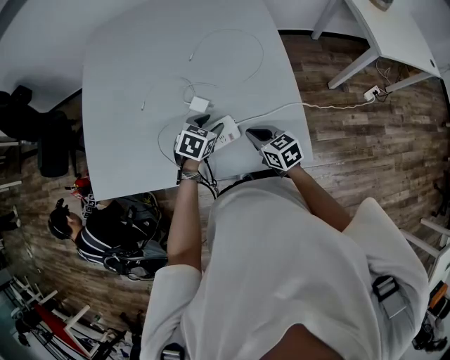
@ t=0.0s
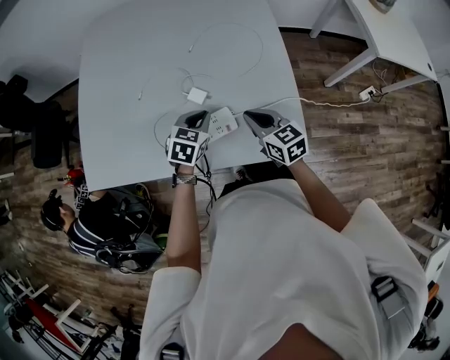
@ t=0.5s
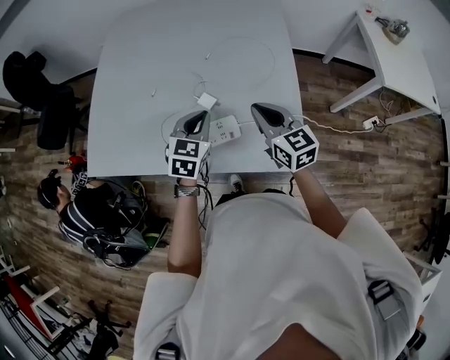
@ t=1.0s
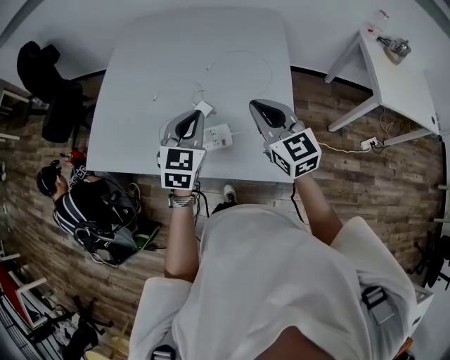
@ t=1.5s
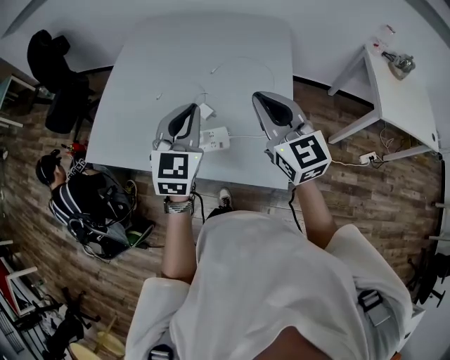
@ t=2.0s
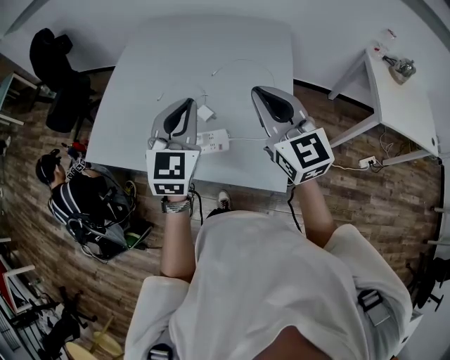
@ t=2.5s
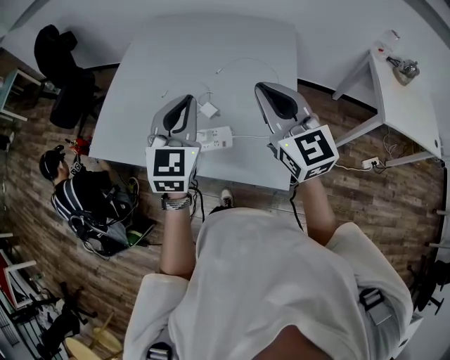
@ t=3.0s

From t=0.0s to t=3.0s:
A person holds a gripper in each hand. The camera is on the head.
From t=0.0s to t=1.5s: Both grippers move upward, approximately 25 cm. The right gripper changes its angle by about 30 degrees. Meanwhile the left gripper tilts its fingers some 30 degrees upward, and closes up.
From t=1.5s to t=3.0s: Both grippers move upward, roughly 10 cm.

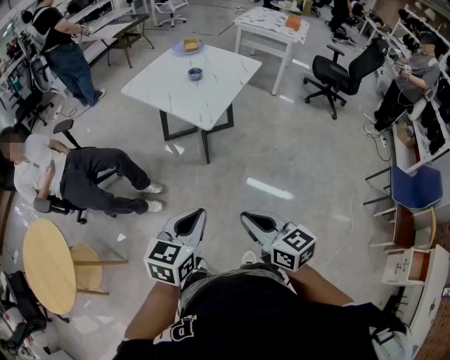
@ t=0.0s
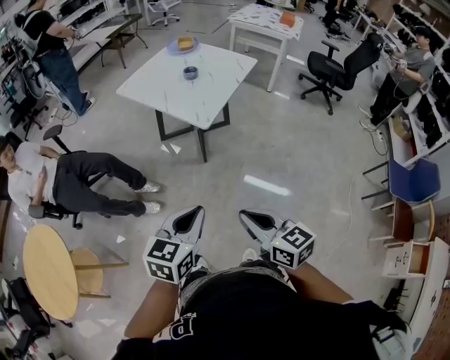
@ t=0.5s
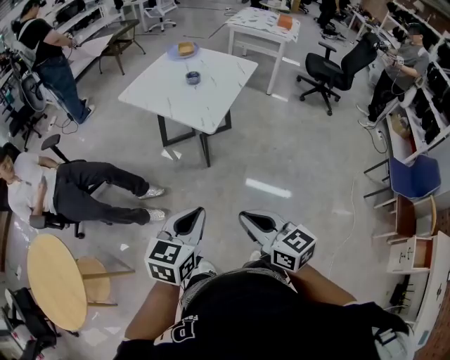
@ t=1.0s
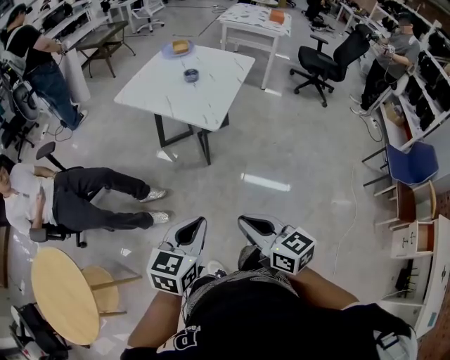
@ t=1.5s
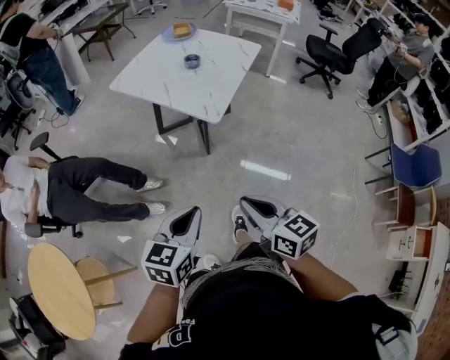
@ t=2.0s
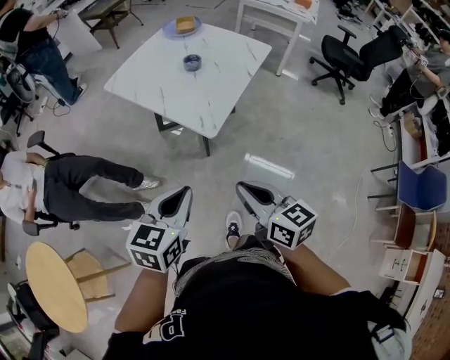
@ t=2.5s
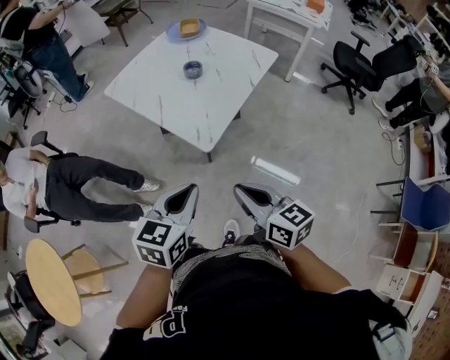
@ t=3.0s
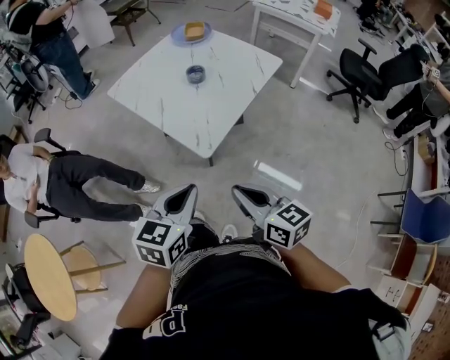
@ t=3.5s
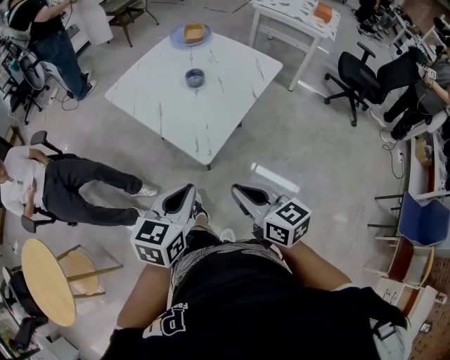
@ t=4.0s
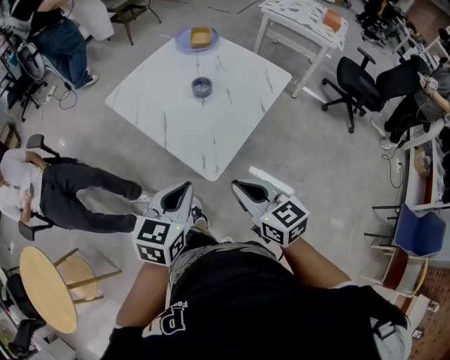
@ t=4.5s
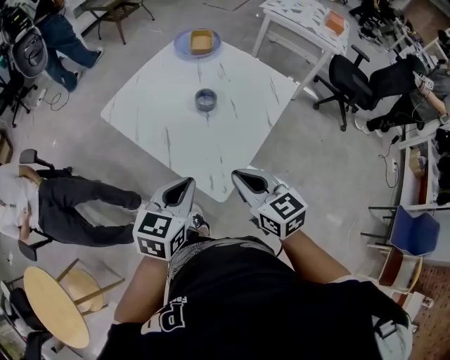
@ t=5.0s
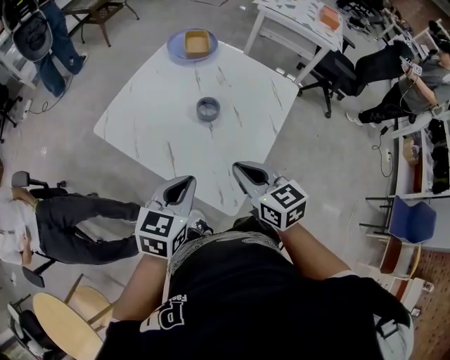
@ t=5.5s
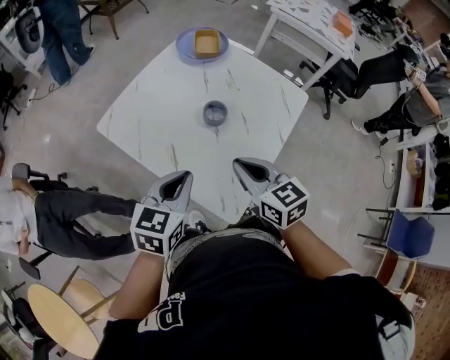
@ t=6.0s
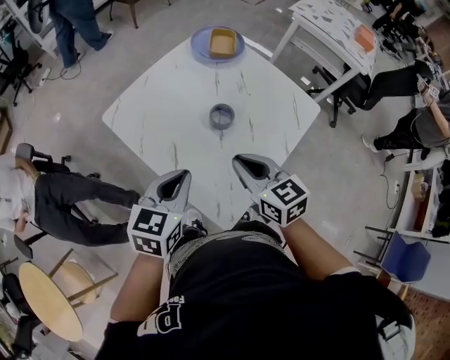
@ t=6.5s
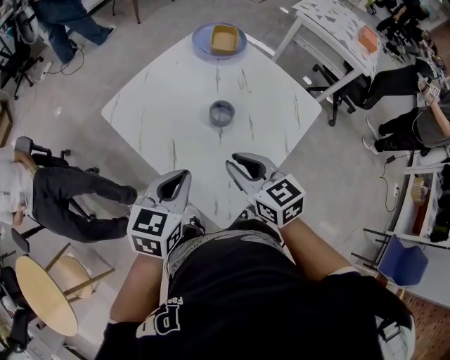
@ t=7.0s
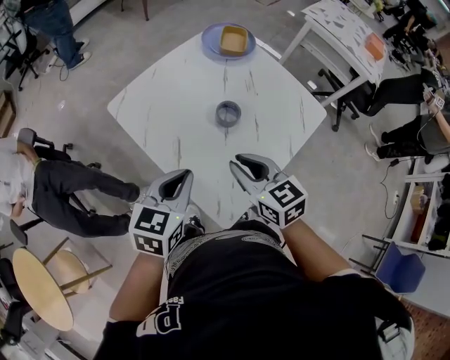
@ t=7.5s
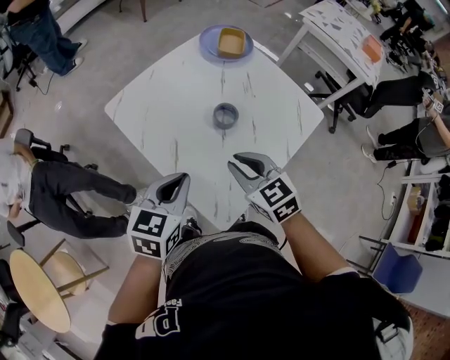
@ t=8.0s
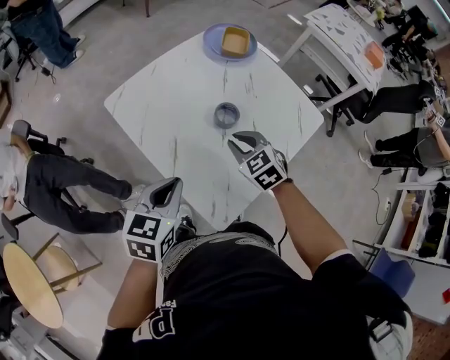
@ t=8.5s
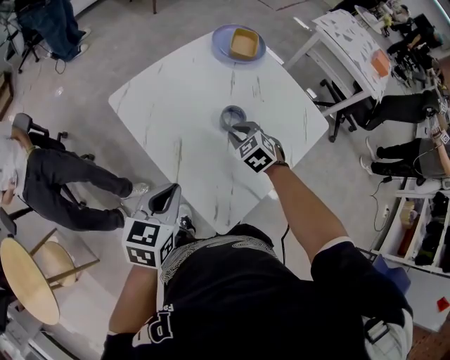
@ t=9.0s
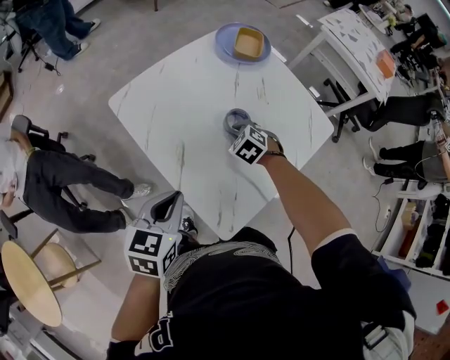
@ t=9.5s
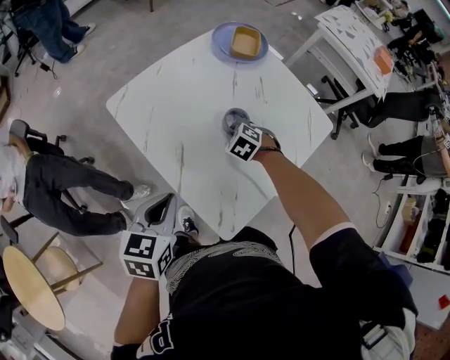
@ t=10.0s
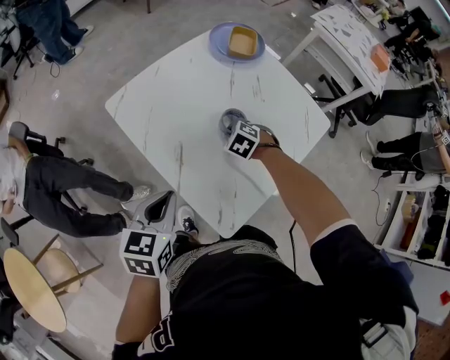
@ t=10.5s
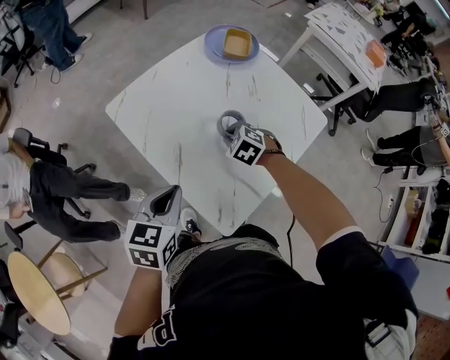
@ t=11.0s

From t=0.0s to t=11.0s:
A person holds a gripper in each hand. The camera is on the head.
From t=0.0s to t=2.0s: The left gripper moves to the left and forward, about 10 cm; the right gripper travels forward and to the left by approximately 10 cm.
From t=2.0s to t=3.5s: The grippers both shift forward and to the right by roughly 25 cm.
From t=3.5s to t=5.5s: Both grippers move forward, approximately 30 cm.
From t=5.5s to t=7.5s: The right gripper heads forward, covering roughly 5 cm.
From t=7.5s to t=9.0s: The right gripper moves downward and forward, some 20 cm, and changes its angle by about 40 degrees; the left gripper shifts by approximately 5 cm.
From t=9.0s to t=11.0s: The right gripper goes downward and returns, about 10 cm each way.

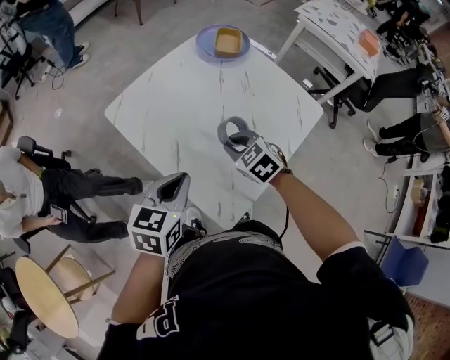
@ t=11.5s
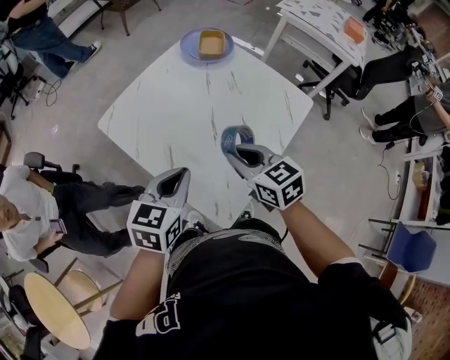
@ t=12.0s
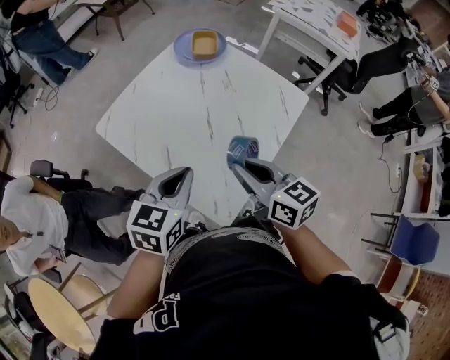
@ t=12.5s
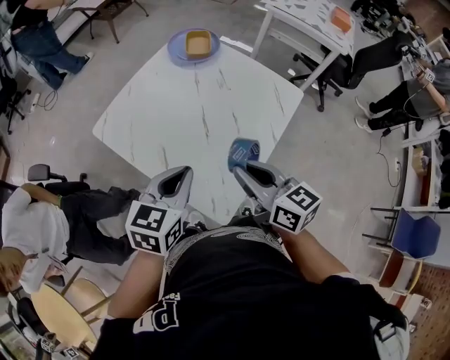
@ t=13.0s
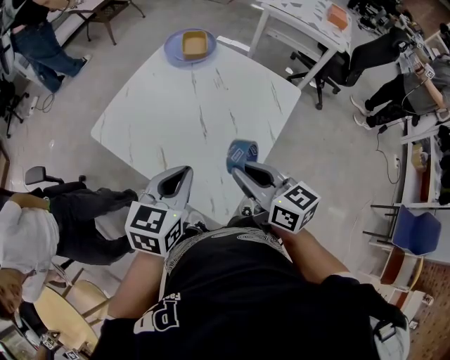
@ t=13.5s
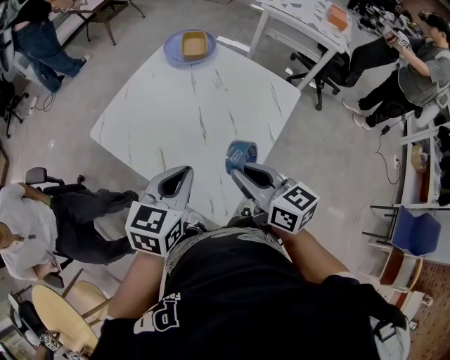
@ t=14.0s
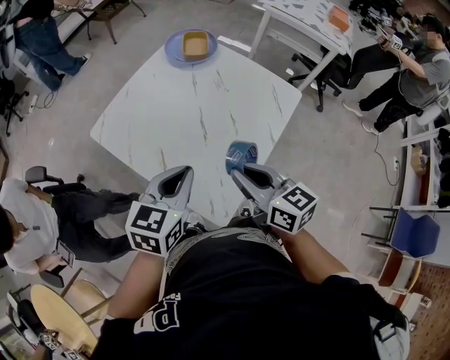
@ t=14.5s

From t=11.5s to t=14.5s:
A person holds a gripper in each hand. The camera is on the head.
From t=11.5s to t=13.0s: The right gripper shifts about 20 cm upward and backward, and tips its fingers upward by about 40 degrees. The left gripper is displaced to the right by roughly 5 cm.
From t=13.0s to t=14.5s: The two grippers keep their place.

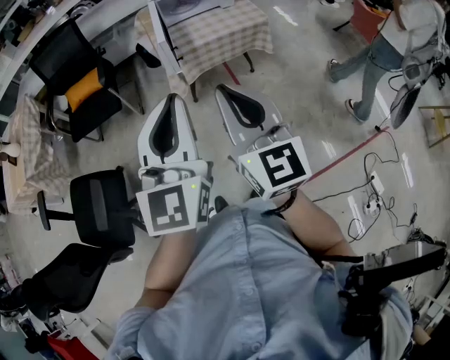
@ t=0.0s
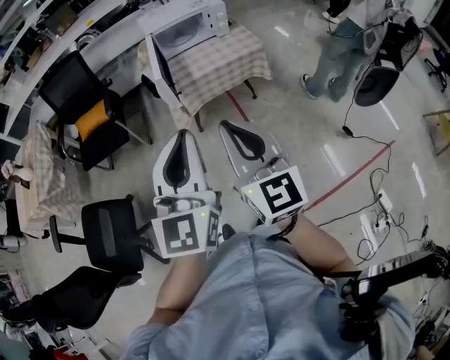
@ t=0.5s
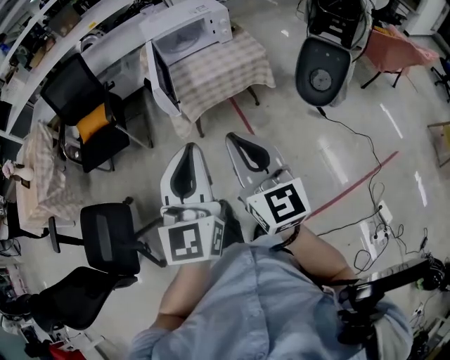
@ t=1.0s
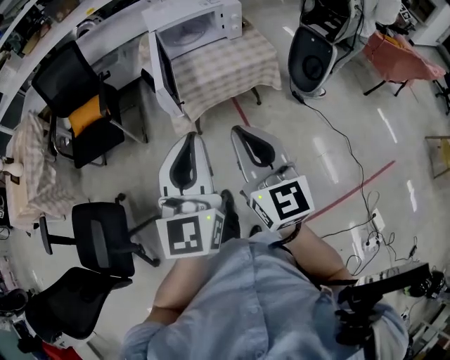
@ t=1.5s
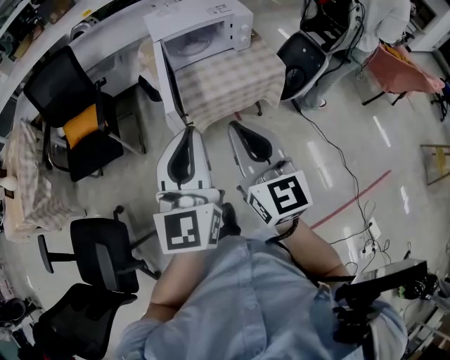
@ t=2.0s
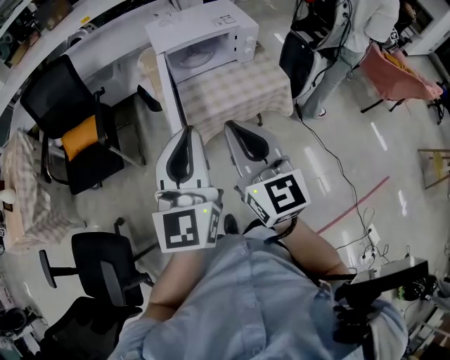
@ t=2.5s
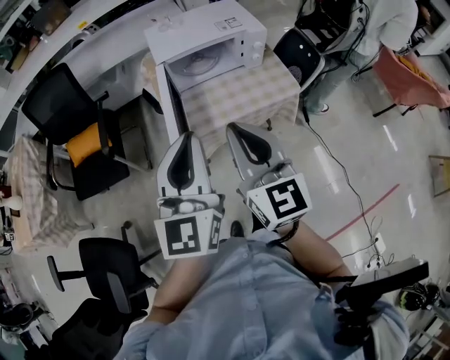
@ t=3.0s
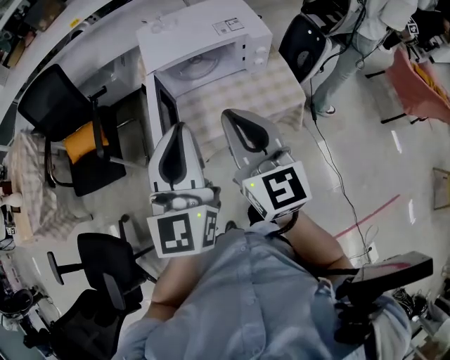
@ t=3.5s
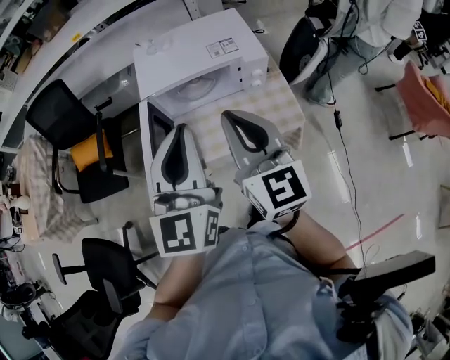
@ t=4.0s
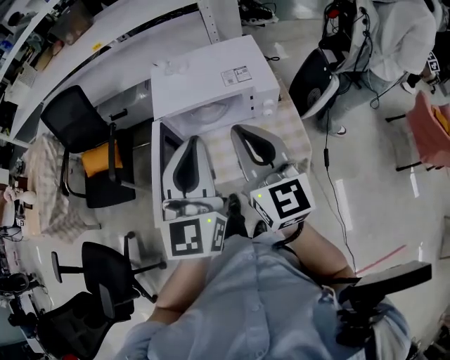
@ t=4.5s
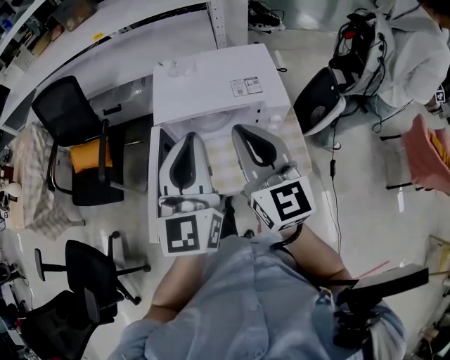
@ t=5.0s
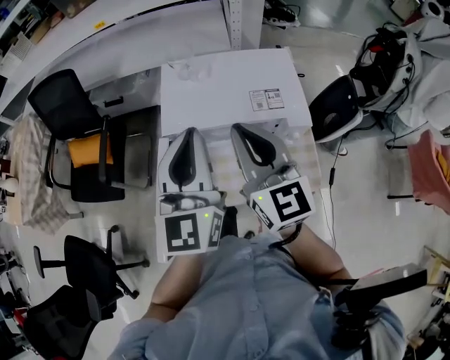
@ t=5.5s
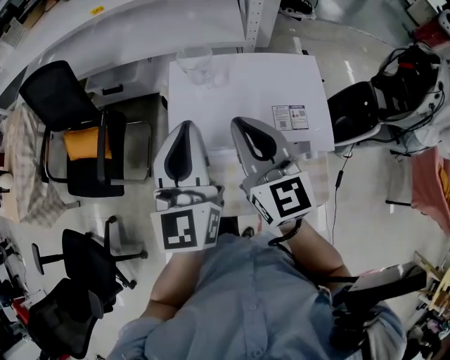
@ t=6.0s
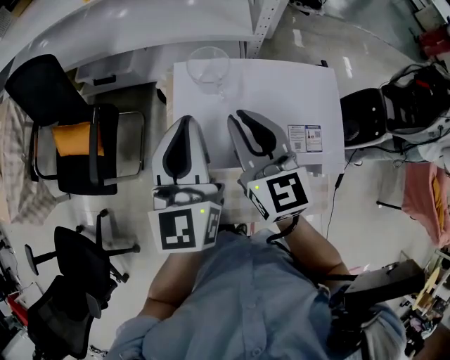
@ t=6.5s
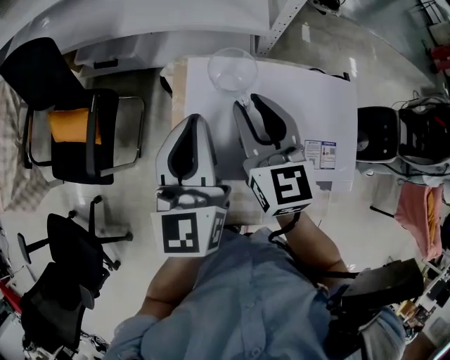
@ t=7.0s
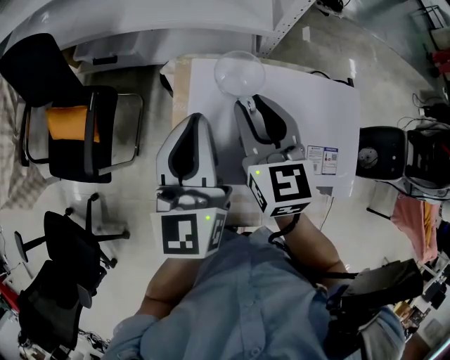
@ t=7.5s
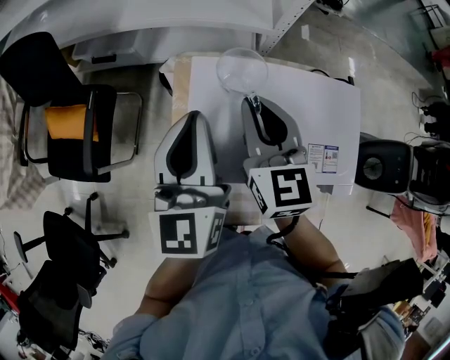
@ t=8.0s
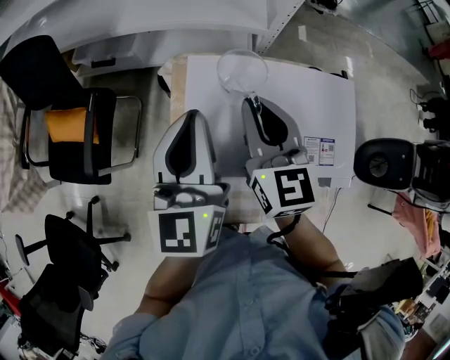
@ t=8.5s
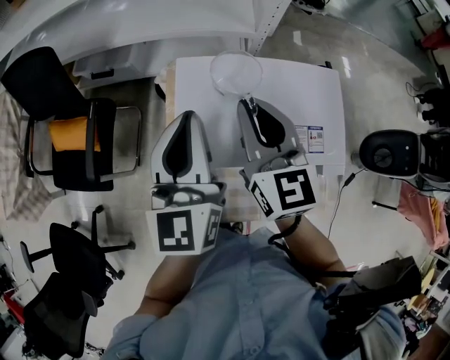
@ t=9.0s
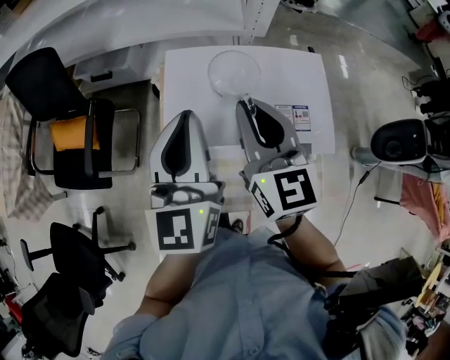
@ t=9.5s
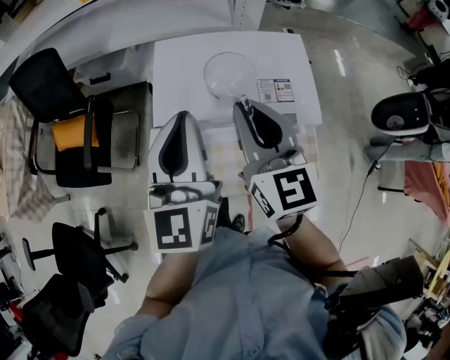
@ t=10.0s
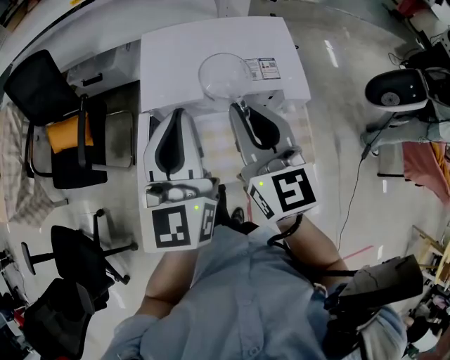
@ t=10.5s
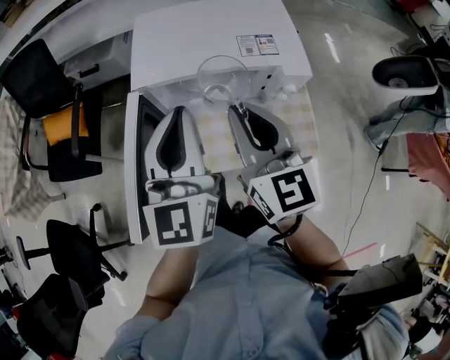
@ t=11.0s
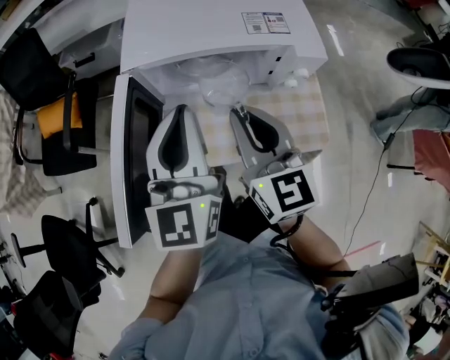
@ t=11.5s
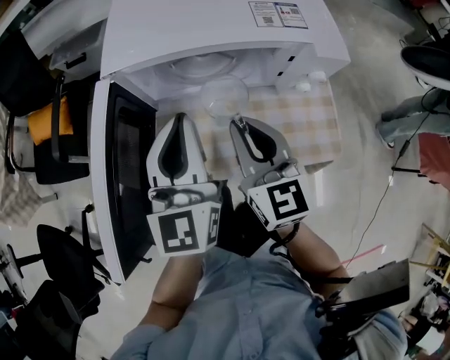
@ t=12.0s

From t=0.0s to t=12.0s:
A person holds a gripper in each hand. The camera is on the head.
From t=0.0s to t=2.0s: Both grippers move forward, some 25 cm.
From t=2.0s to t=4.0s: The two grippers go about 35 cm forward and to the right.
From t=4.0s to t=6.0s: The grippers both shift forward by roughly 25 cm.
From t=6.0s to t=8.0s: Both grippers move forward and downward, about 15 cm.
From t=8.0s to t=10.0s: The two grippers go roughly 20 cm backward.
From t=10.0s to t=12.0s: The right gripper travels downward and backward by some 25 cm, while the left gripper moves downward, roughly 20 cm.
